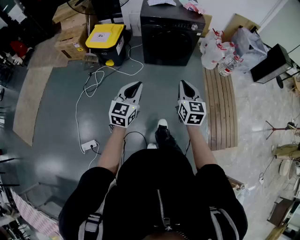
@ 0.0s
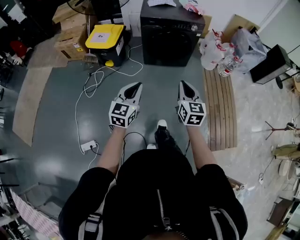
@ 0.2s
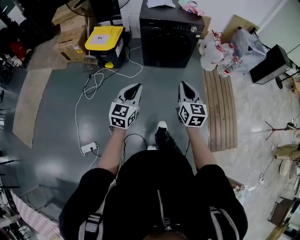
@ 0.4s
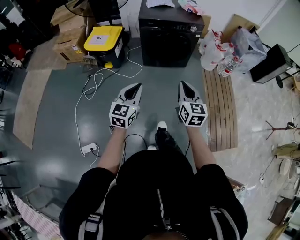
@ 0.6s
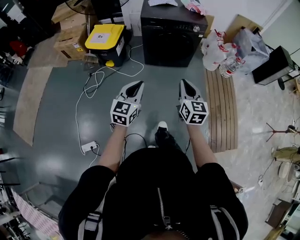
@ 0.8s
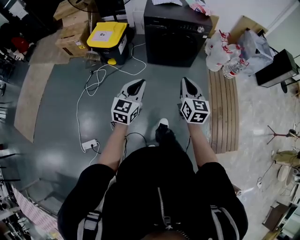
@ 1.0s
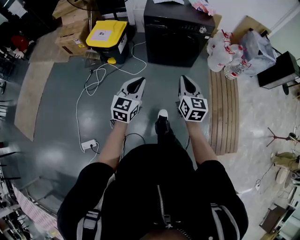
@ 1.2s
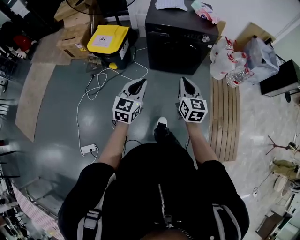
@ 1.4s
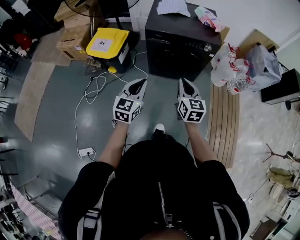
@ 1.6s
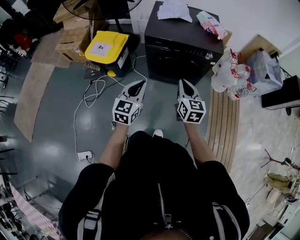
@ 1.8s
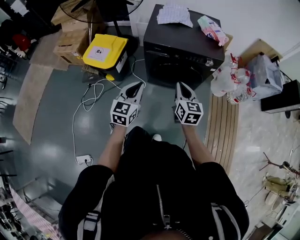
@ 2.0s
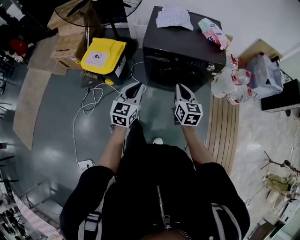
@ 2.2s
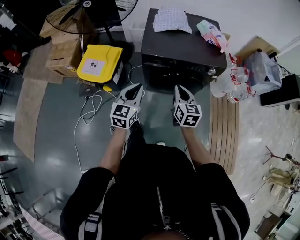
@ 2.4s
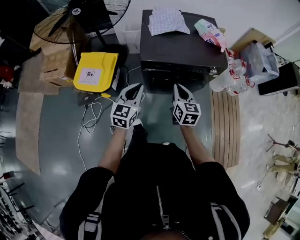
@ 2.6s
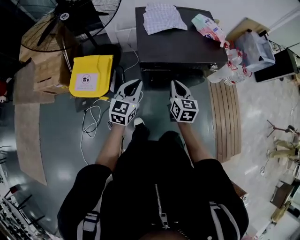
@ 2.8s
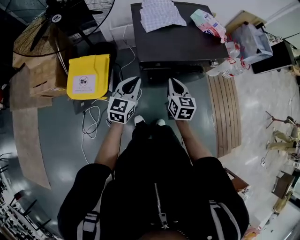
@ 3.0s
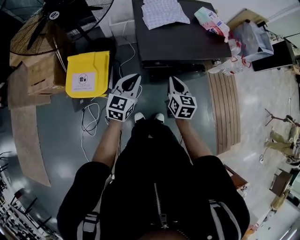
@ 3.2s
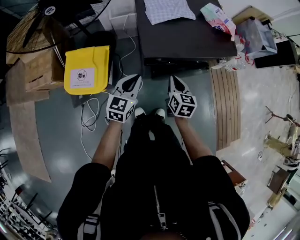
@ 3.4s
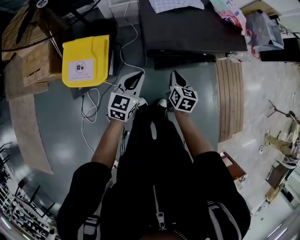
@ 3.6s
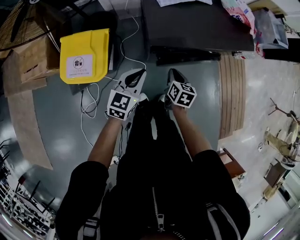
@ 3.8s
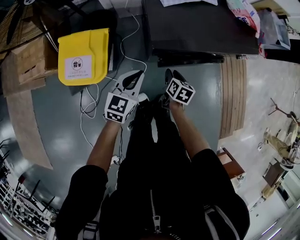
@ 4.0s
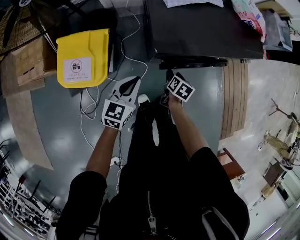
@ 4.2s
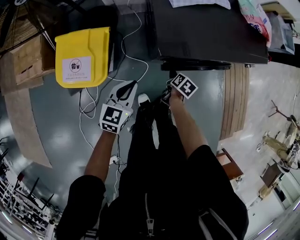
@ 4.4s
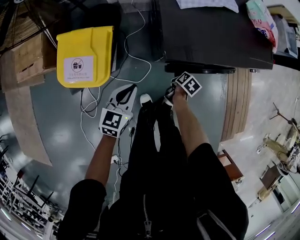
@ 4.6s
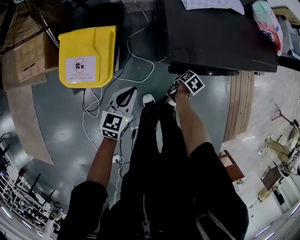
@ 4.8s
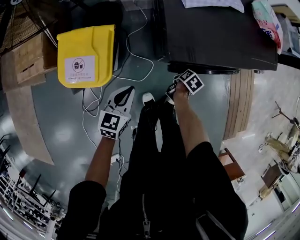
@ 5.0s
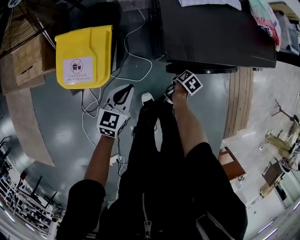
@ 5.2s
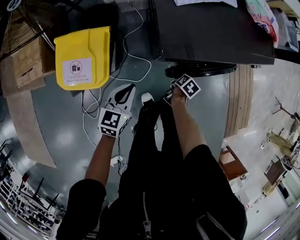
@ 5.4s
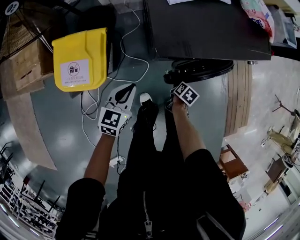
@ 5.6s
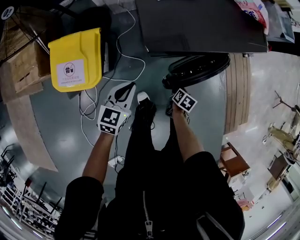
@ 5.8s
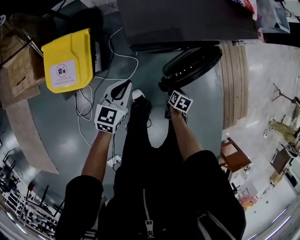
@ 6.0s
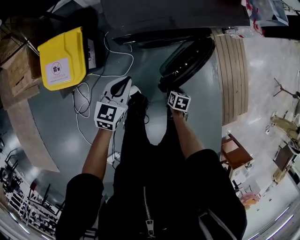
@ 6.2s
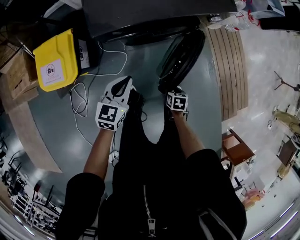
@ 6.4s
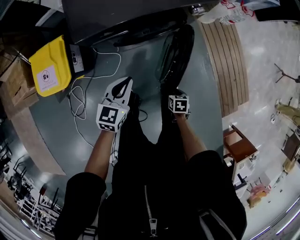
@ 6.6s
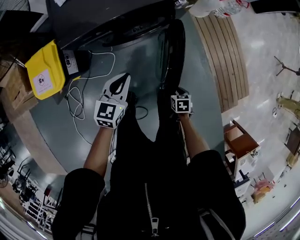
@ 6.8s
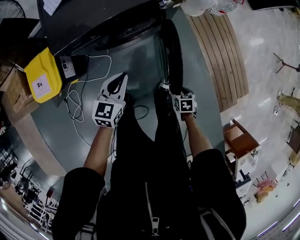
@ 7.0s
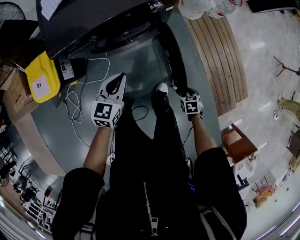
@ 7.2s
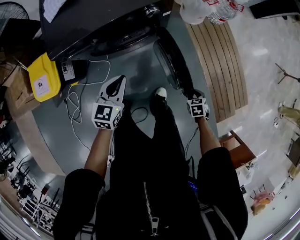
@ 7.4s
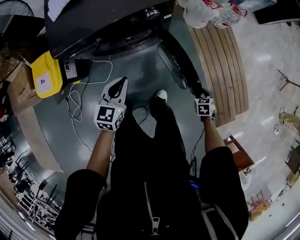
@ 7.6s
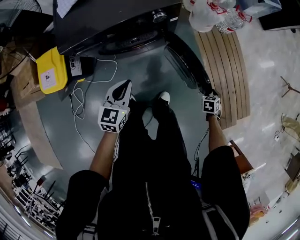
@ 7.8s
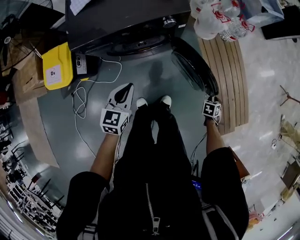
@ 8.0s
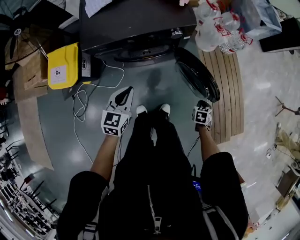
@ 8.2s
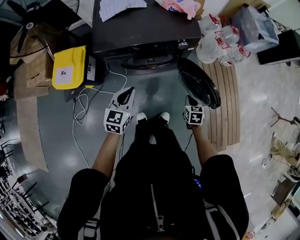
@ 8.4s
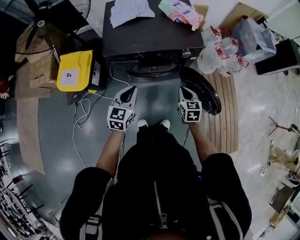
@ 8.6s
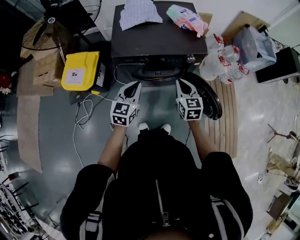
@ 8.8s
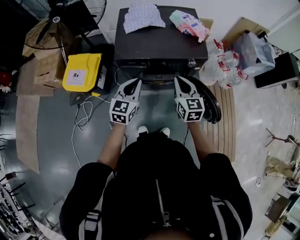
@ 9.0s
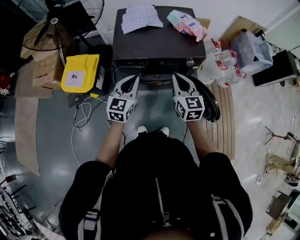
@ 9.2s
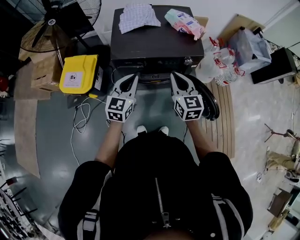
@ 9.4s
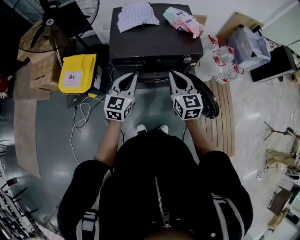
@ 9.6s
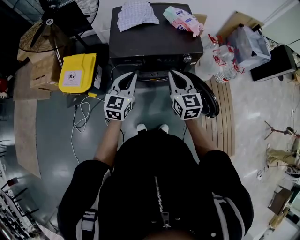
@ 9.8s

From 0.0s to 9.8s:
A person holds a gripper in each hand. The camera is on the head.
From 0.0s to 1.4s: Both grippers travel together forward, approximately 20 cm.
From 1.4s to 2.8s: Both grippers are carried forward, some 40 cm.
From 2.8s to 4.2s: The right gripper is displaced downward by about 30 cm, points its fingers roughly 30 degrees further downward, and opens; the left gripper travels downward and to the left by roughly 20 cm.
From 4.2s to 5.6s: The right gripper travels downward and to the right by roughly 10 cm.
From 5.6s to 7.0s: The right gripper goes some 40 cm to the right and backward, and changes its angle by approximately 30 degrees; the left gripper moves to the right, approximately 35 cm.
From 7.0s to 8.4s: The left gripper is displaced upward by some 10 cm; the right gripper travels upward by about 15 cm, and swivels roughly 20 degrees.
From 8.4s to 9.8s: The left gripper goes roughly 15 cm upward and to the left; the right gripper moves upward and to the left, some 35 cm, and tips its fingers upward by approximately 40 degrees.

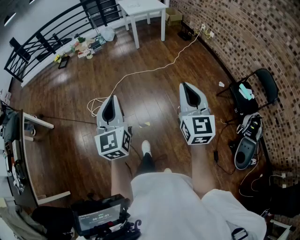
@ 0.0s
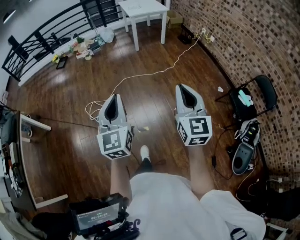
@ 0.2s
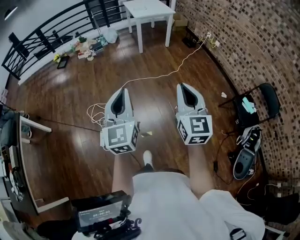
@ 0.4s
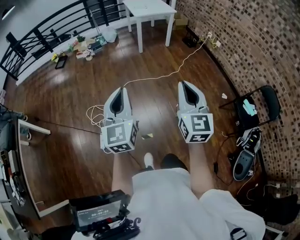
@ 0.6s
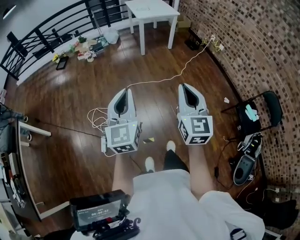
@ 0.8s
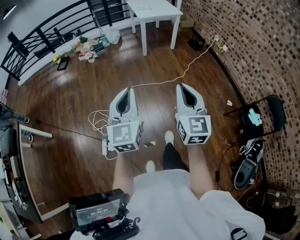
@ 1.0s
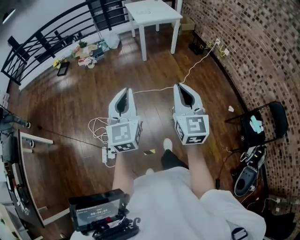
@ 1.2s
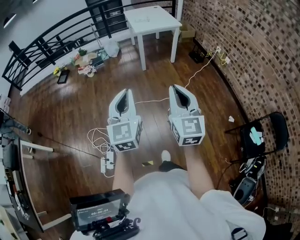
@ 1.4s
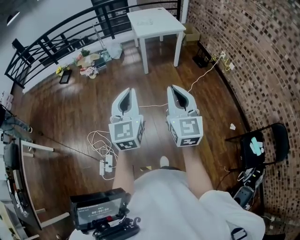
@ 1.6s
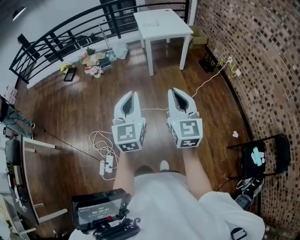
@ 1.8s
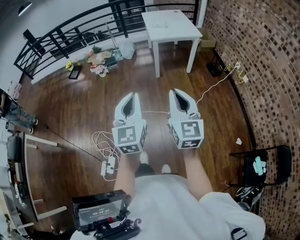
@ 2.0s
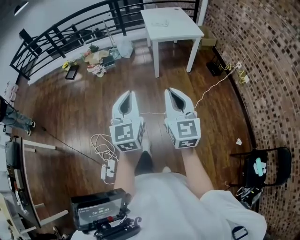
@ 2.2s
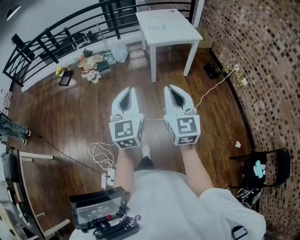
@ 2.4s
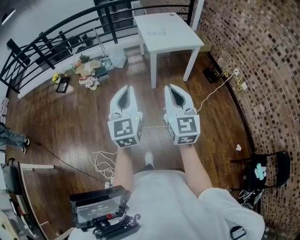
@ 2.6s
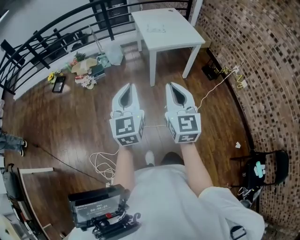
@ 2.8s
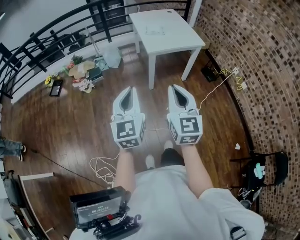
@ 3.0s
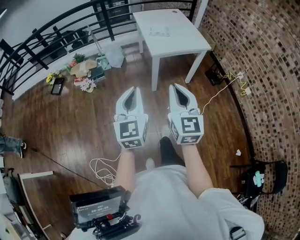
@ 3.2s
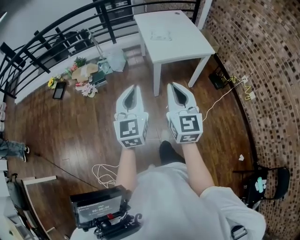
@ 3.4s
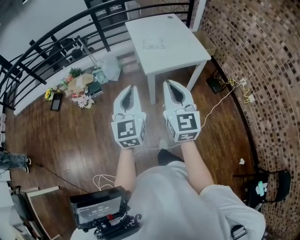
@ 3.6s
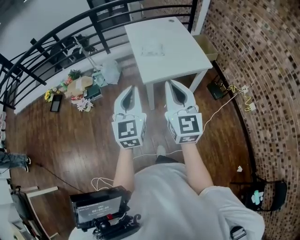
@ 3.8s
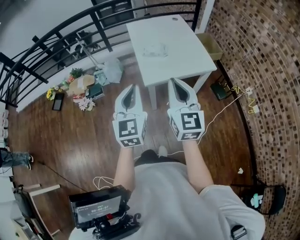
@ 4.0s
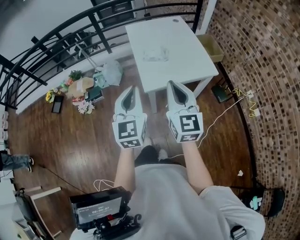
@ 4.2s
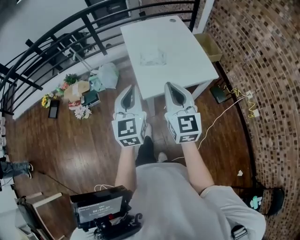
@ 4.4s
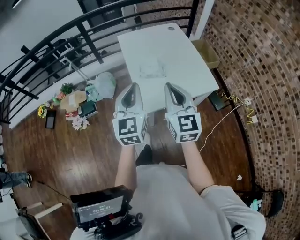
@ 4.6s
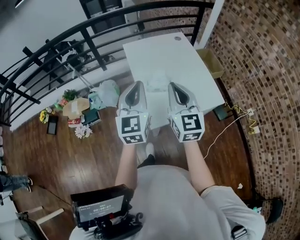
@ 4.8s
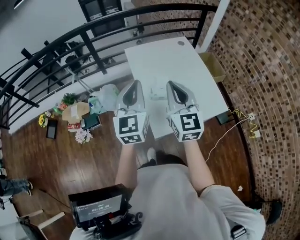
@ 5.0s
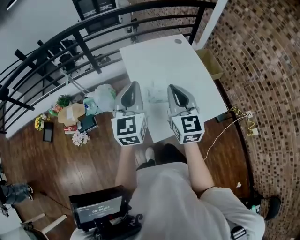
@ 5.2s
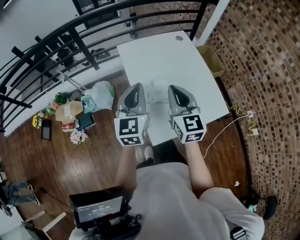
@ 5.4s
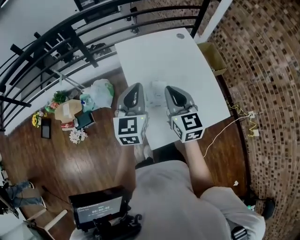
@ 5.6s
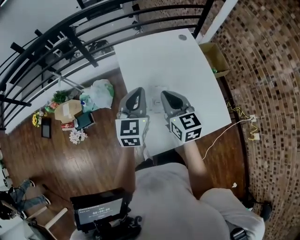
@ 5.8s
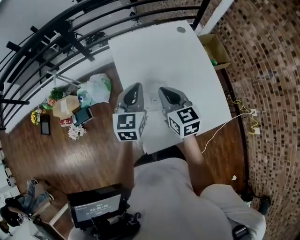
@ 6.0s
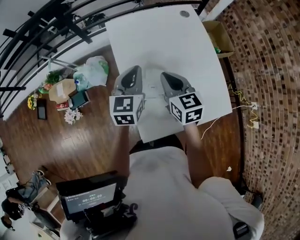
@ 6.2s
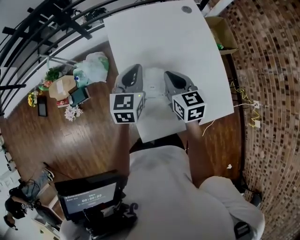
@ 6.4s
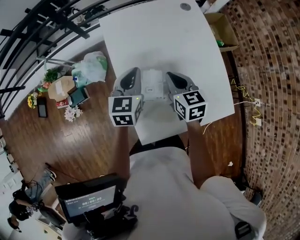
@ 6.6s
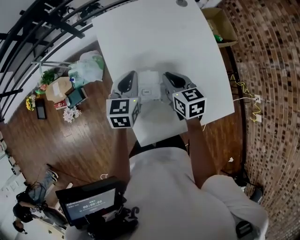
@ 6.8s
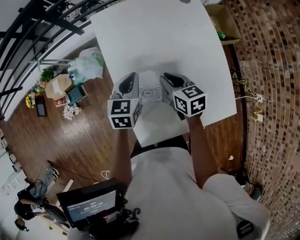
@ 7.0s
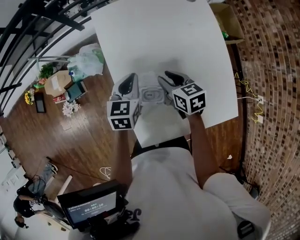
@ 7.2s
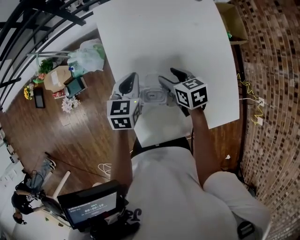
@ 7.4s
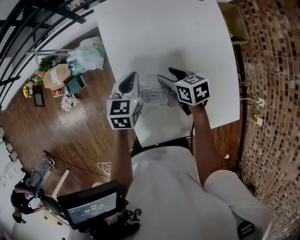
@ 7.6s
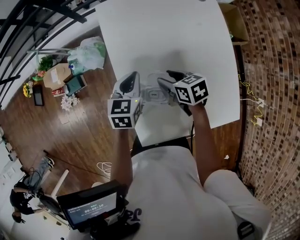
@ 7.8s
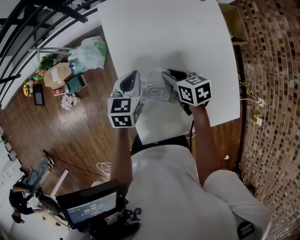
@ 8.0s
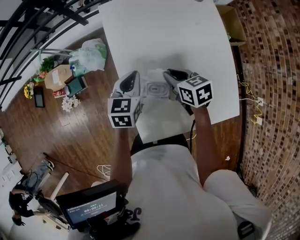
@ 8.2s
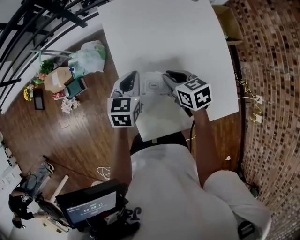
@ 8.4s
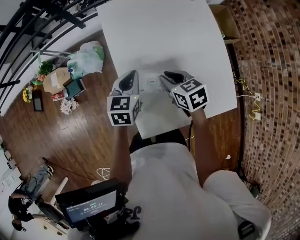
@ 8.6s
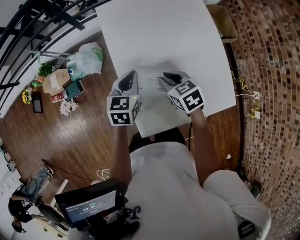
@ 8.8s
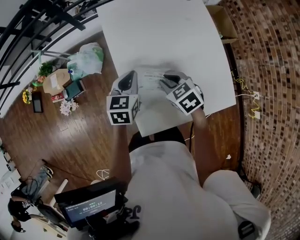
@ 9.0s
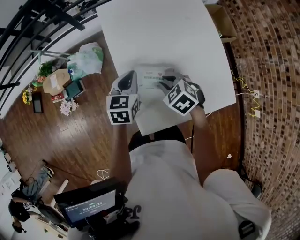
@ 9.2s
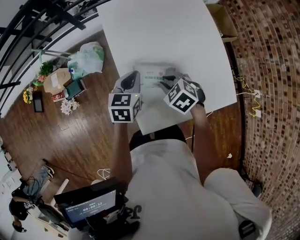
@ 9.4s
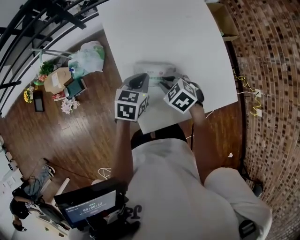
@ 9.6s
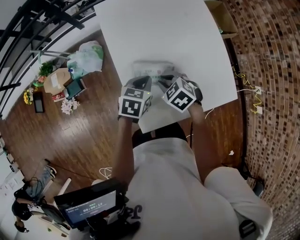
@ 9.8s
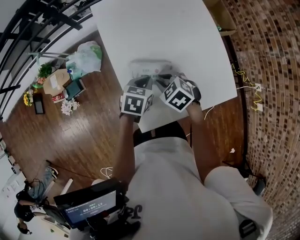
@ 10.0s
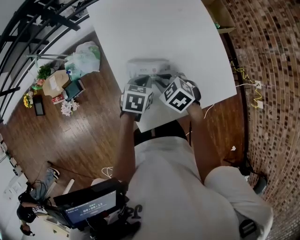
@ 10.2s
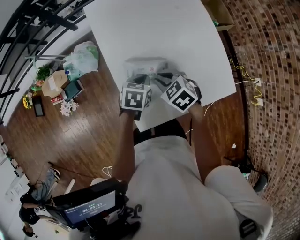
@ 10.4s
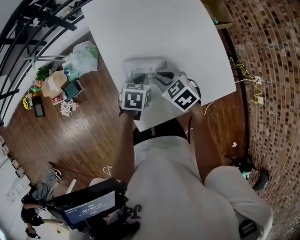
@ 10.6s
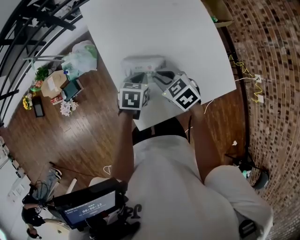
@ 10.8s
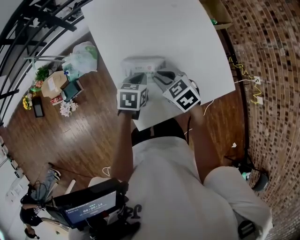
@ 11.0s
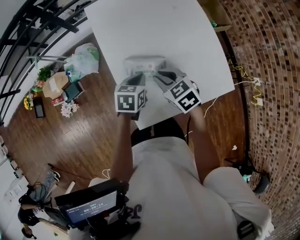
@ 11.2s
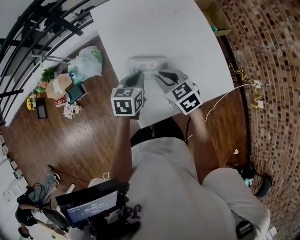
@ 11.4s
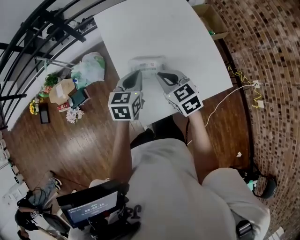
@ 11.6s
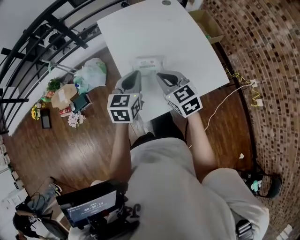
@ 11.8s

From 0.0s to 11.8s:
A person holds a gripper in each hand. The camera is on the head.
From 0.0s to 1.4s: The two grippers travel together, forward, approximately 50 cm.
From 1.4s to 3.0s: The pair of grippers is taken forward, approximately 50 cm.
From 3.0s to 4.4s: Both grippers are carried forward, some 50 cm.
From 4.4s to 6.0s: The two grippers travel together, forward, roughly 40 cm. The right gripper changes its angle by roughly 30 degrees.
From 6.0s to 7.4s: The two grippers go some 20 cm downward. The right gripper rotates about 30 degrees, and opens, while the left gripper rotates some 20 degrees.
From 7.4s to 8.8s: The left gripper is displaced backward by approximately 5 cm. The right gripper goes about 10 cm backward and upward, and closes its fingers.
From 8.8s to 10.4s: The right gripper shifts by about 5 cm; the left gripper moves downward, backward and to the right, some 10 cm, and turns by roughly 30 degrees.
From 10.4s to 11.8s: The right gripper heads upward and backward, covering roughly 15 cm, and swivels some 30 degrees. The left gripper travels upward by about 15 cm, and tilts its fingers some 30 degrees upward.

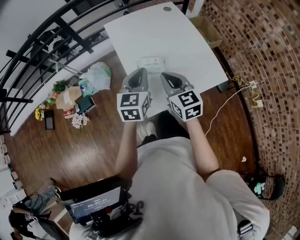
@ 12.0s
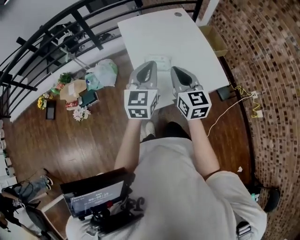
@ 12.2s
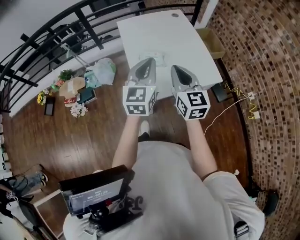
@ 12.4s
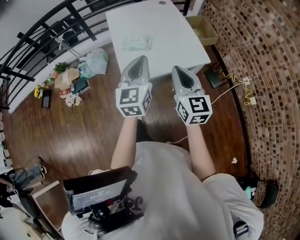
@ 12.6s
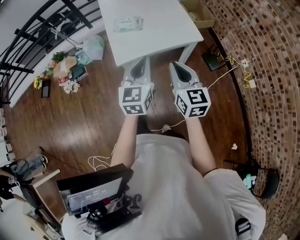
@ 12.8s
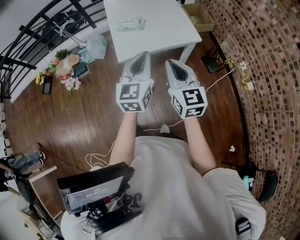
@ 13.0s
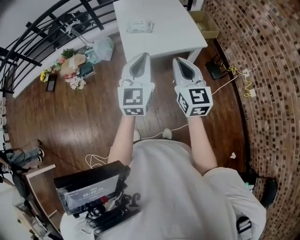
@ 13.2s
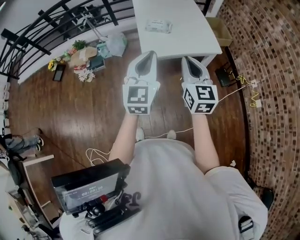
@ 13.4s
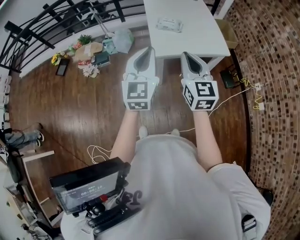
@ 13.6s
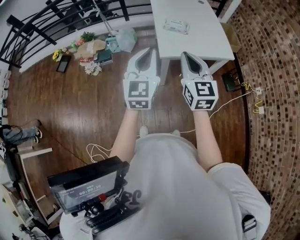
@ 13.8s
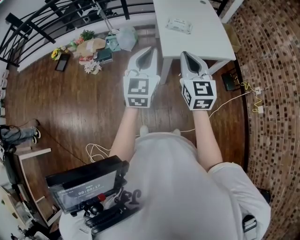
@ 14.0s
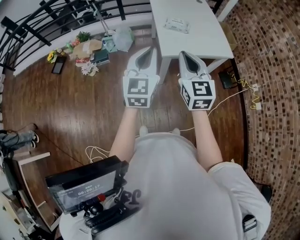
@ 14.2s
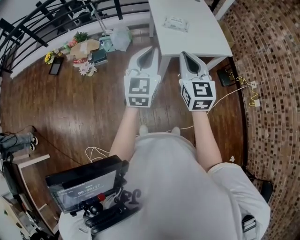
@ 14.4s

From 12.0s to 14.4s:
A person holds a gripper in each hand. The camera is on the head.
From 12.0s to 13.2s: The left gripper travels backward by approximately 35 cm, and changes its angle by about 20 degrees, while the right gripper is displaced backward and to the right by about 40 cm.
From 13.2s to 14.4s: Both grippers travel together to the left, some 25 cm.
